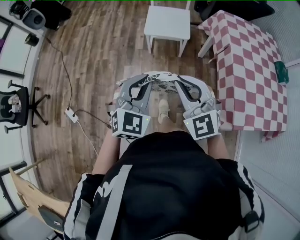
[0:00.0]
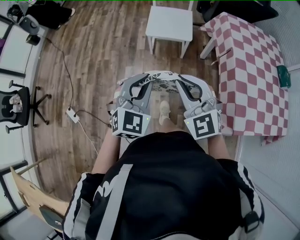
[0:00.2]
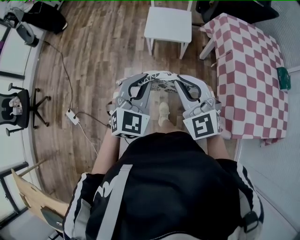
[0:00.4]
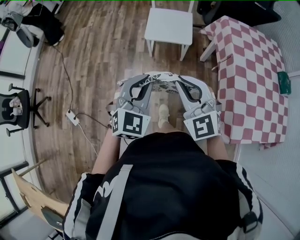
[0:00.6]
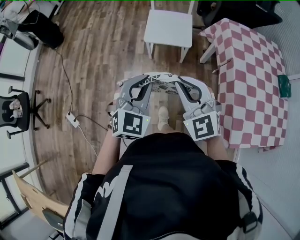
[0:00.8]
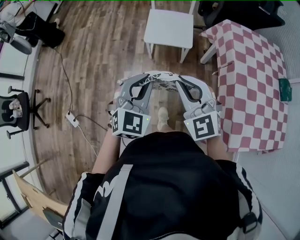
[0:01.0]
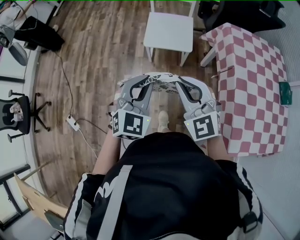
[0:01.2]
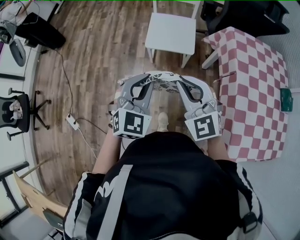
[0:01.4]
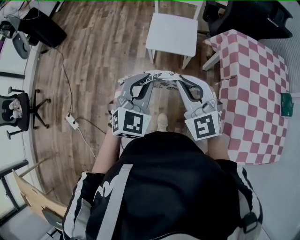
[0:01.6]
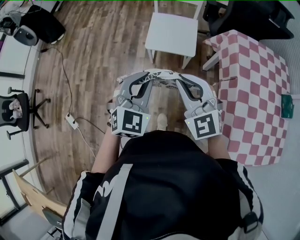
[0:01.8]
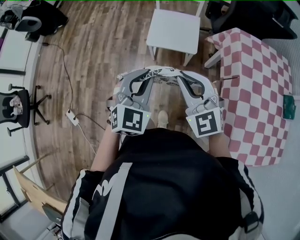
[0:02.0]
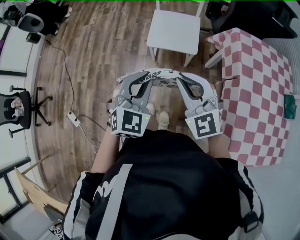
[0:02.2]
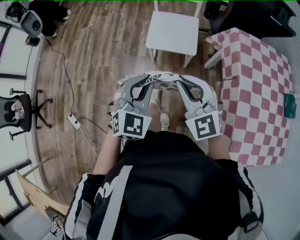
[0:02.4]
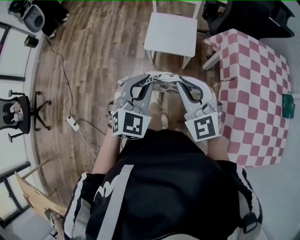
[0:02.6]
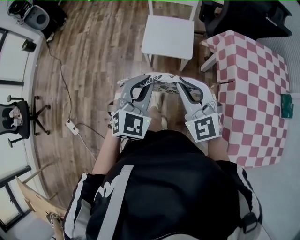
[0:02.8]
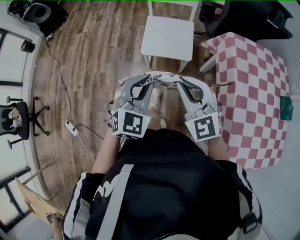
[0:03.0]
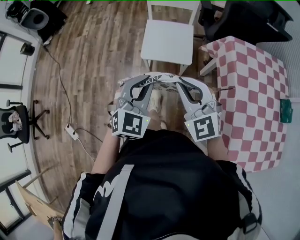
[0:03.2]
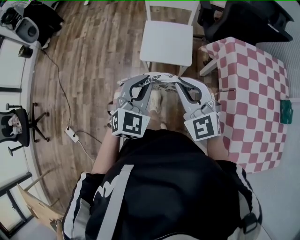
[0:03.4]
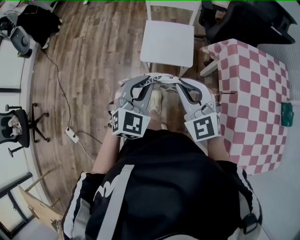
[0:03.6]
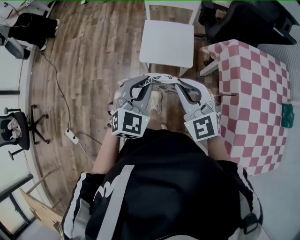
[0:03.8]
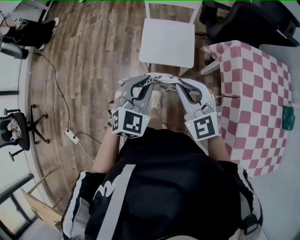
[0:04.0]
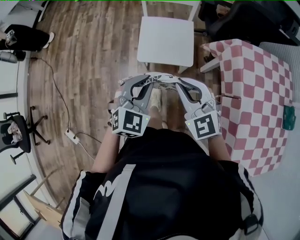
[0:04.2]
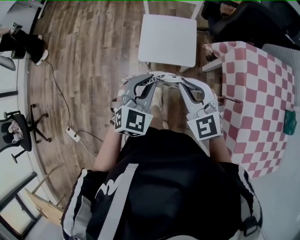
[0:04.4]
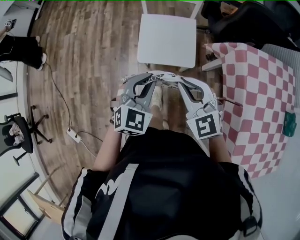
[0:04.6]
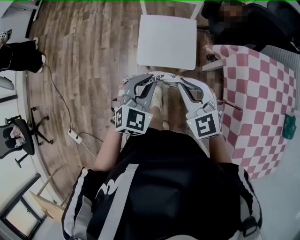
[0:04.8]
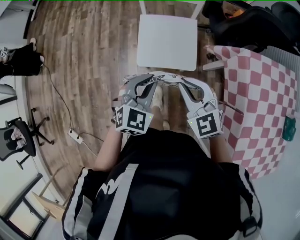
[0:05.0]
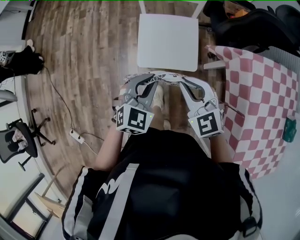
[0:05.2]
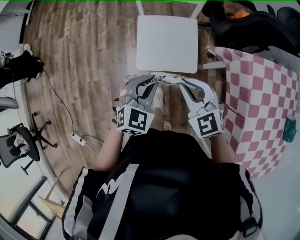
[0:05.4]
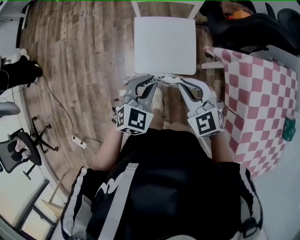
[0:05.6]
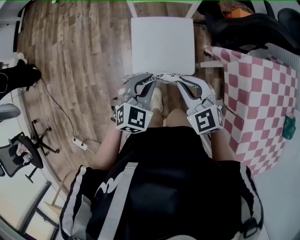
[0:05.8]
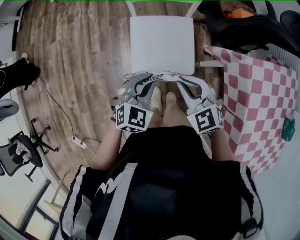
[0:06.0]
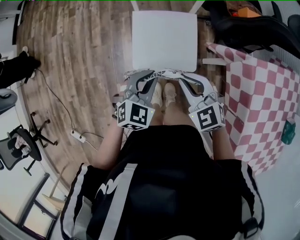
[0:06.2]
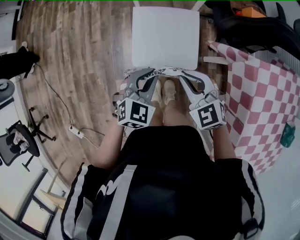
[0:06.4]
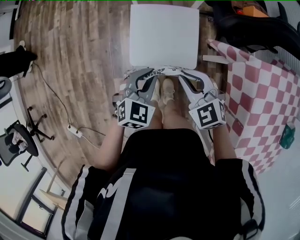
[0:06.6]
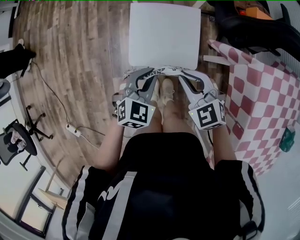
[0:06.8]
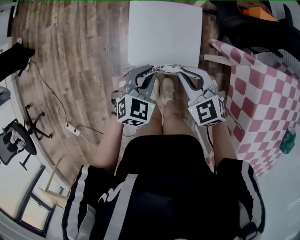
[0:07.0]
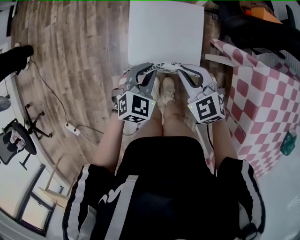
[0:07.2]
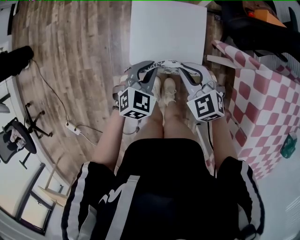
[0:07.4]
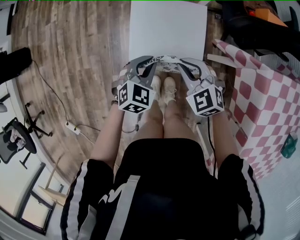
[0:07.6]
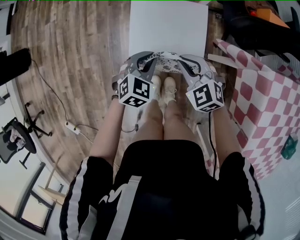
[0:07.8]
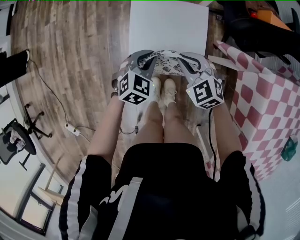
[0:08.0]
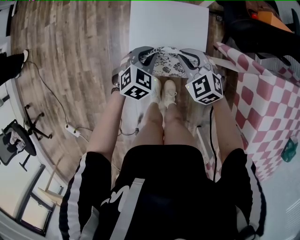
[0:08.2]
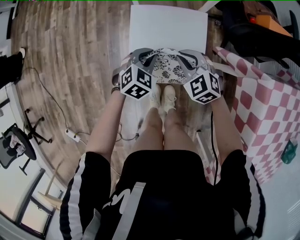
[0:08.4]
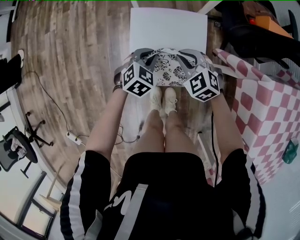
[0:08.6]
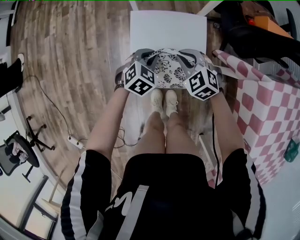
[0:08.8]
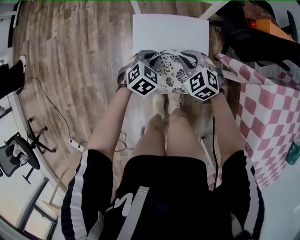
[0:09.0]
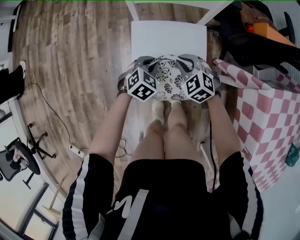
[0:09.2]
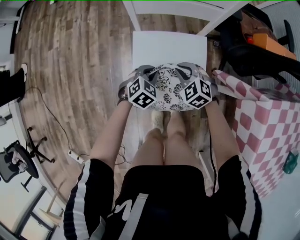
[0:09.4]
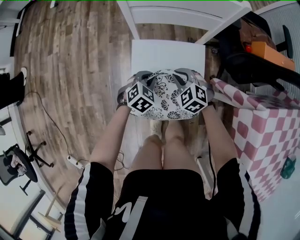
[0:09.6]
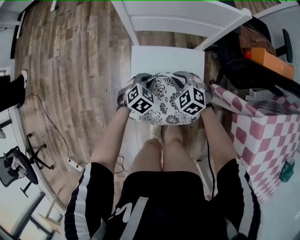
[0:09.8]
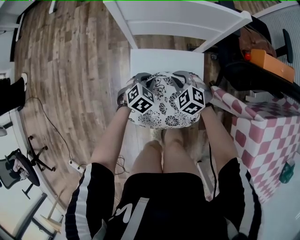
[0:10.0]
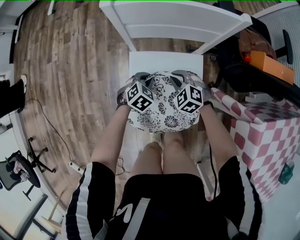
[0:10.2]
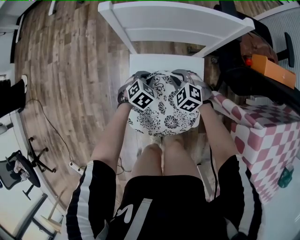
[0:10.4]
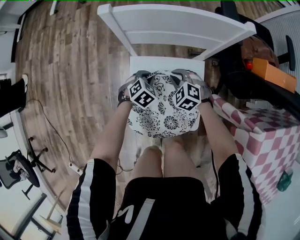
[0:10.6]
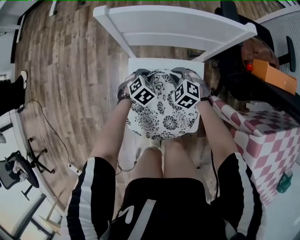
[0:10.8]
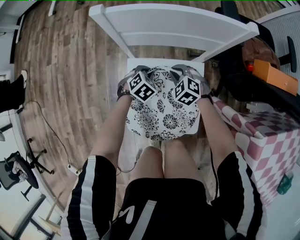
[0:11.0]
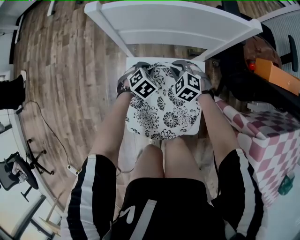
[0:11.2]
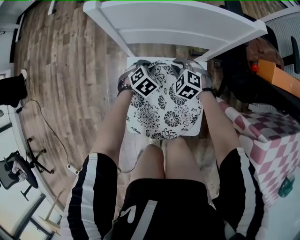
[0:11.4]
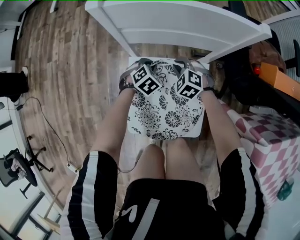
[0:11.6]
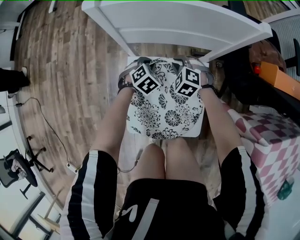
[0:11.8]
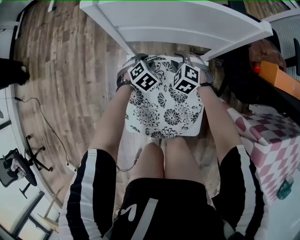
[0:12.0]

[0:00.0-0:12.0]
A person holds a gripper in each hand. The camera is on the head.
0:00.0 to 0:01.6: Both grippers move forward, approximately 20 cm.
0:01.6 to 0:03.0: The grippers both shift forward by about 5 cm.
0:03.0 to 0:04.4: Both grippers travel together forward and downward, about 15 cm.
0:04.4 to 0:06.0: The two grippers go some 20 cm forward and downward.
0:06.0 to 0:07.6: The left gripper is displaced downward by approximately 15 cm. Meanwhile the right gripper shifts about 15 cm downward and forward.
0:07.6 to 0:09.0: The two grippers go roughly 15 cm forward and downward.
0:09.0 to 0:10.4: Both grippers move forward and downward, about 15 cm.
0:10.4 to 0:12.0: The two grippers go some 10 cm forward and downward. The left gripper opens up; the right gripper opens.

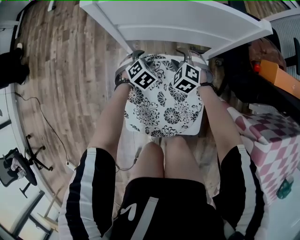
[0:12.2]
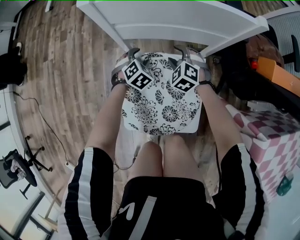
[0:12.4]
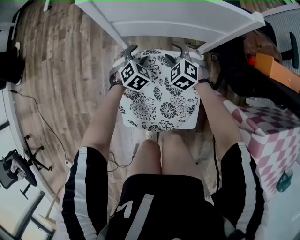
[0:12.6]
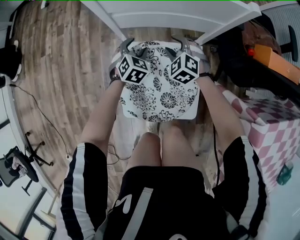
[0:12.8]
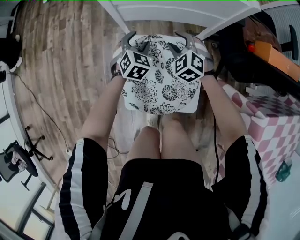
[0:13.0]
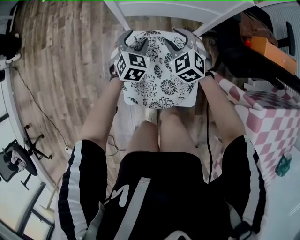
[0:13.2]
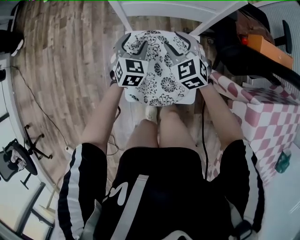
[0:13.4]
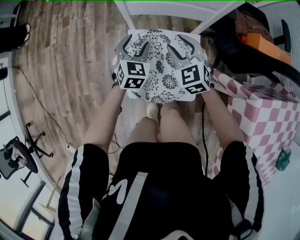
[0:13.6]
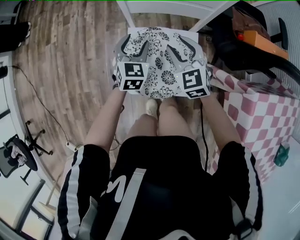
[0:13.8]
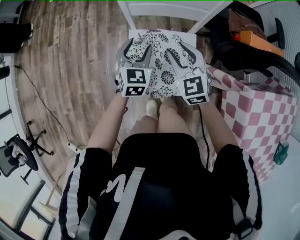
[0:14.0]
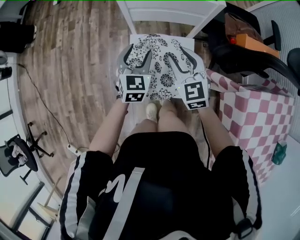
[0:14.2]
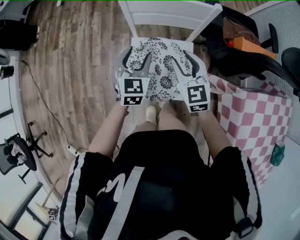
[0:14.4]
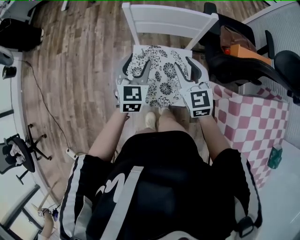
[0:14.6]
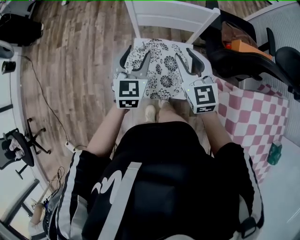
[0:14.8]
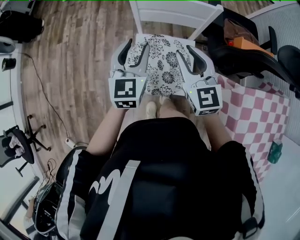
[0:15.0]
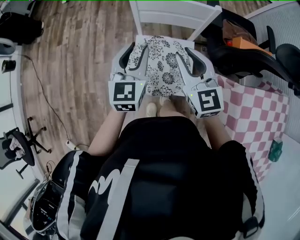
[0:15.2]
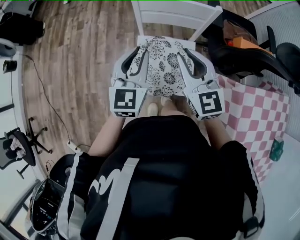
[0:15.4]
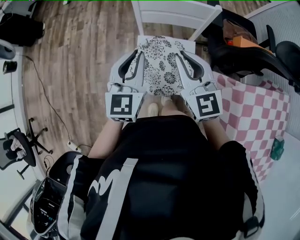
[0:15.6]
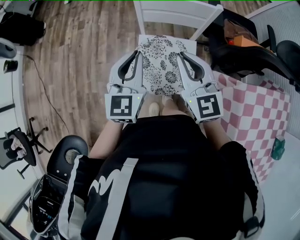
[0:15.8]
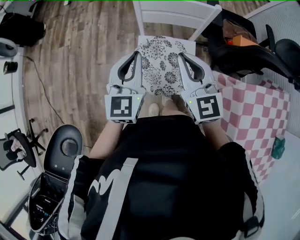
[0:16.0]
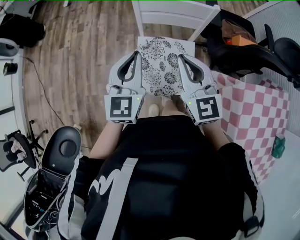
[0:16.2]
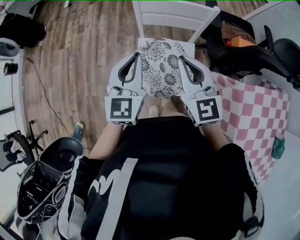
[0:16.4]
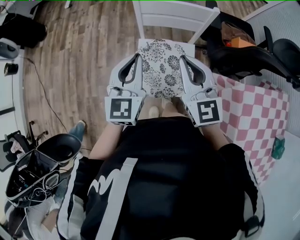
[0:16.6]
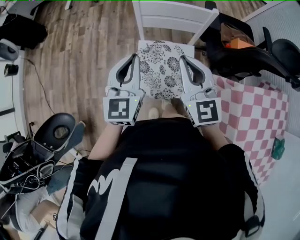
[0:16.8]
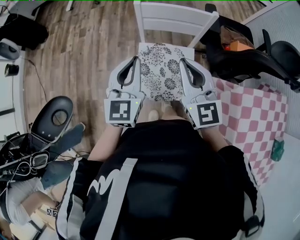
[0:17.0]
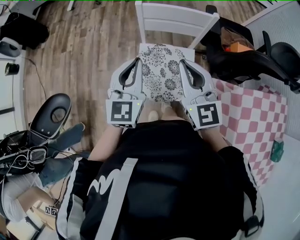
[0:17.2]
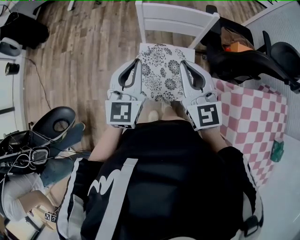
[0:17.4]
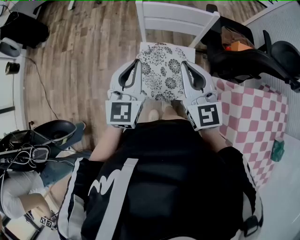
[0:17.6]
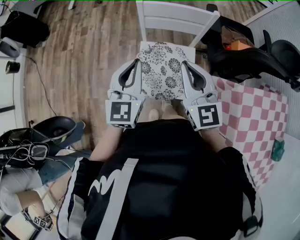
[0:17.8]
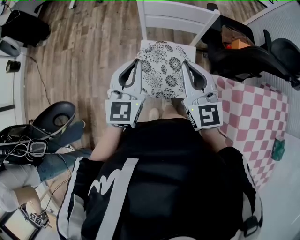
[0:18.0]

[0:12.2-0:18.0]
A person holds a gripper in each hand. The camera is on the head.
0:12.2 to 0:13.6: The left gripper shifts approximately 20 cm upward, and swivels about 30 degrees. The right gripper goes some 25 cm upward and backward, and rotates about 30 degrees.
0:13.6 to 0:15.0: Both grippers move upward, roughly 25 cm. The left gripper rotates approximately 20 degrees; the right gripper rotates roughly 20 degrees.
0:15.0 to 0:16.6: The left gripper goes about 10 cm backward and upward, and closes up; the right gripper heads upward, covering some 5 cm, and closes.
0:16.6 to 0:18.0: The grippers stay close to where they were, moving slightly.

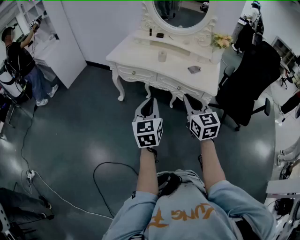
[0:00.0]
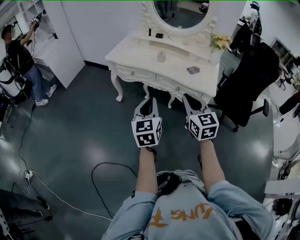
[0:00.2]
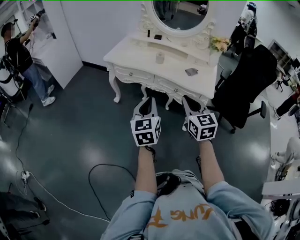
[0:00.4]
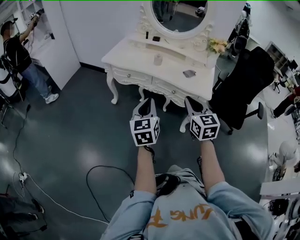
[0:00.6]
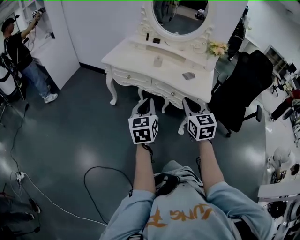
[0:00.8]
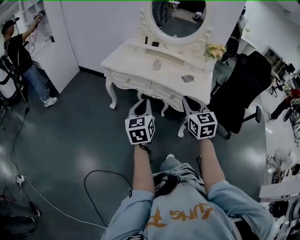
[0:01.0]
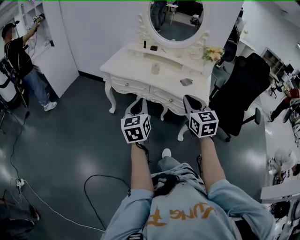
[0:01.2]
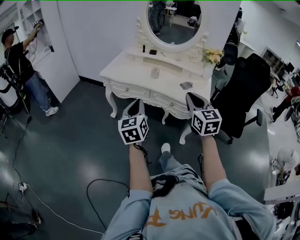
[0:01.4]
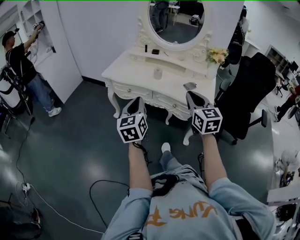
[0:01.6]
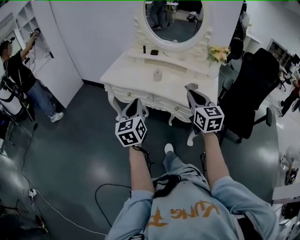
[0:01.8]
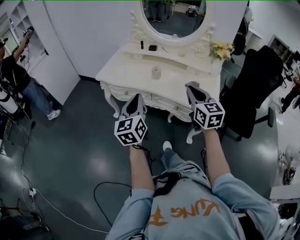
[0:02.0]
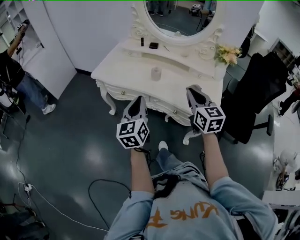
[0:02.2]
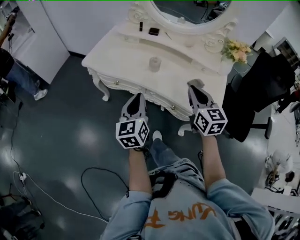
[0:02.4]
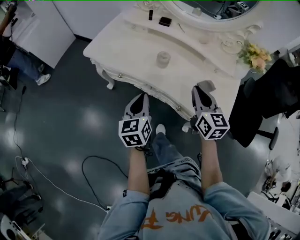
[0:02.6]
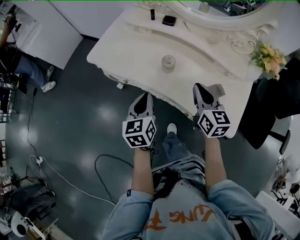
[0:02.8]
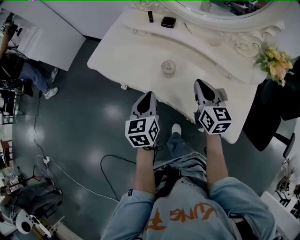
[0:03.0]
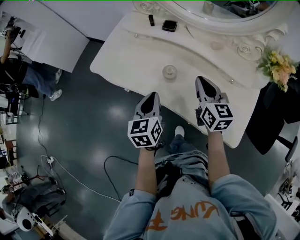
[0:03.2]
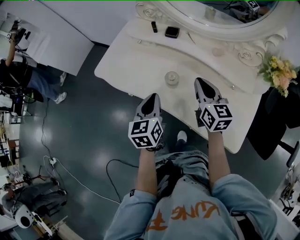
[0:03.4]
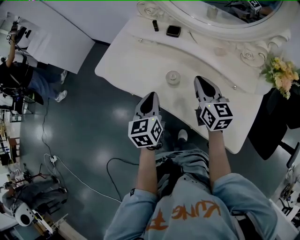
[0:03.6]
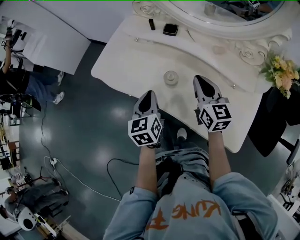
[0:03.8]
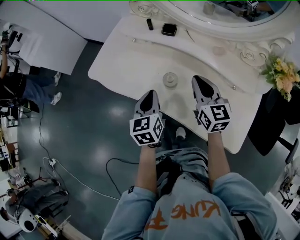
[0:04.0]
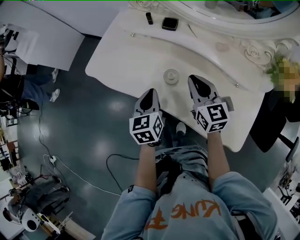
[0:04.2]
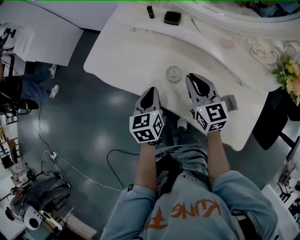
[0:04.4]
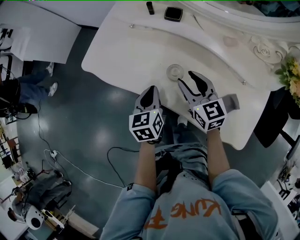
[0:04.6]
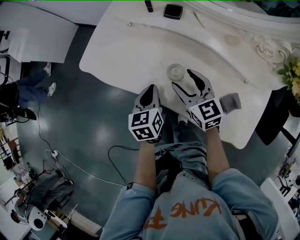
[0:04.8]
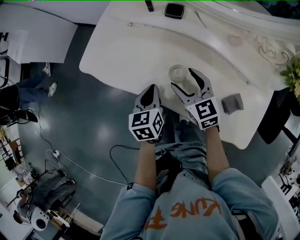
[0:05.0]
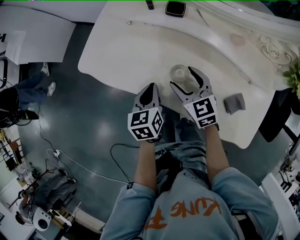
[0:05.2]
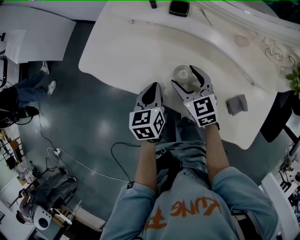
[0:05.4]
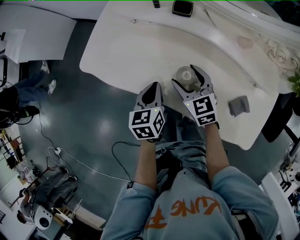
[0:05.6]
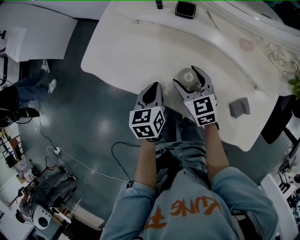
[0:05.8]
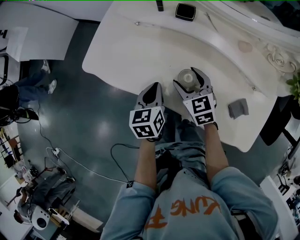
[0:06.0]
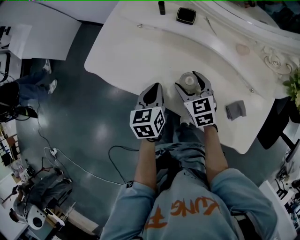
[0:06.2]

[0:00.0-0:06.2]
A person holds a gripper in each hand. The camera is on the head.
0:00.0 to 0:01.6: The grippers both shift forward by some 10 cm.
0:01.6 to 0:03.2: The left gripper moves forward and downward, roughly 35 cm, and turns by about 20 degrees, while the right gripper travels forward by roughly 40 cm, and turns by about 20 degrees.
0:03.2 to 0:04.6: The left gripper heads downward and forward, covering some 10 cm; the right gripper goes about 10 cm to the left and downward, and opens.
0:04.6 to 0:06.2: The right gripper goes some 5 cm downward, and opens its fingers.
